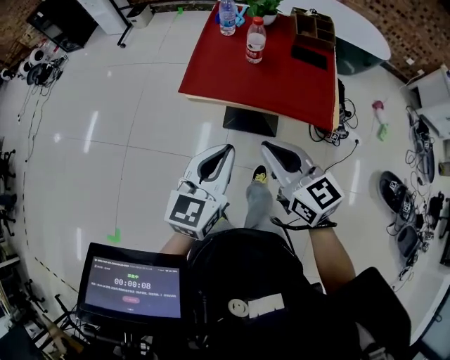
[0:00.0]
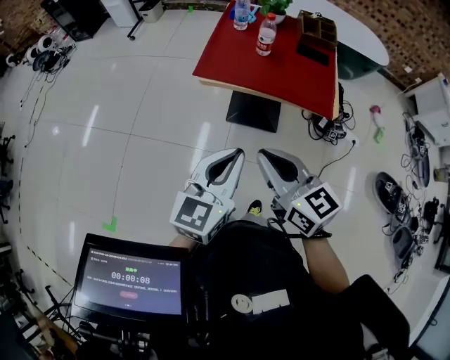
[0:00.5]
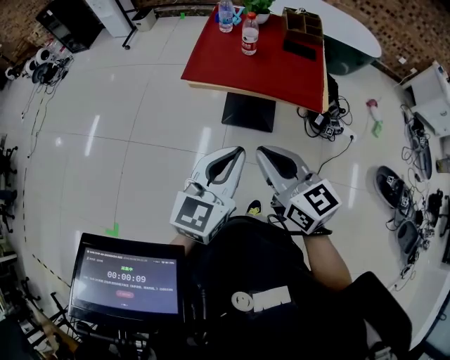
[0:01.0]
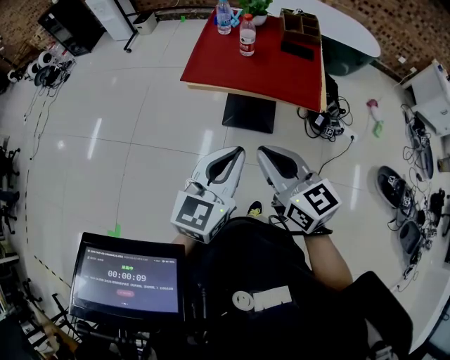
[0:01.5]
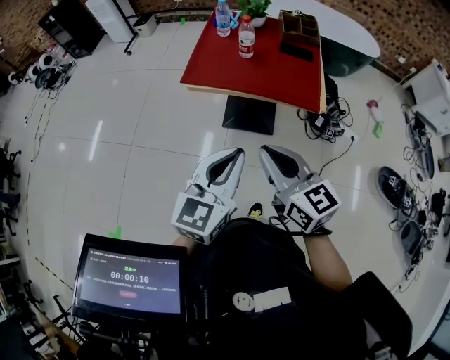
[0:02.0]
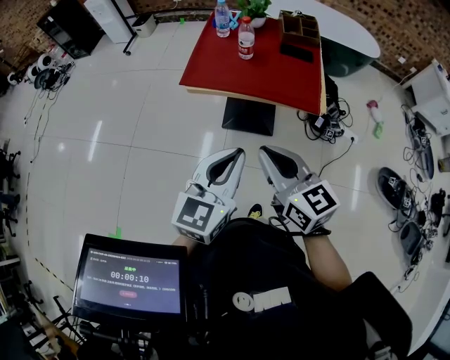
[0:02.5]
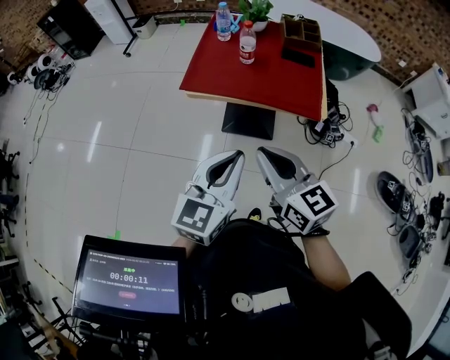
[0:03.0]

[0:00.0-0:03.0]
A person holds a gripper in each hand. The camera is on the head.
0:00.0 to 0:01.5: The right gripper travels backward by about 15 cm; the left gripper goes some 15 cm backward and upward.
0:01.5 to 0:03.0: The grippers make only small movements.

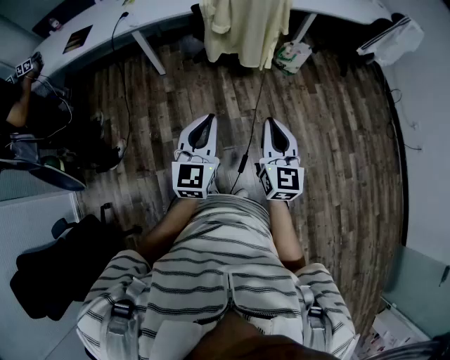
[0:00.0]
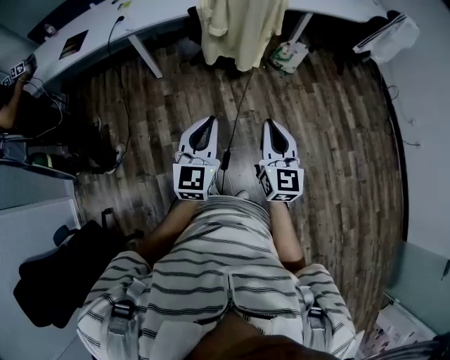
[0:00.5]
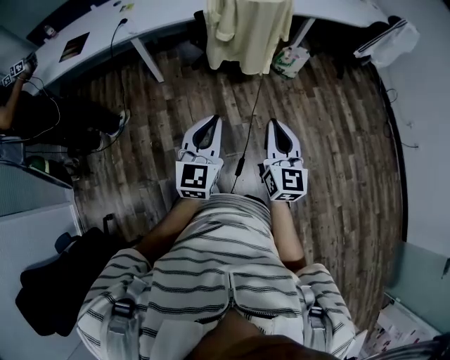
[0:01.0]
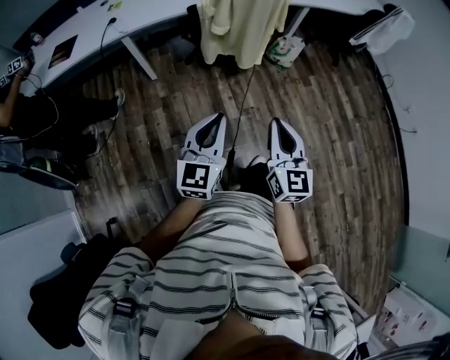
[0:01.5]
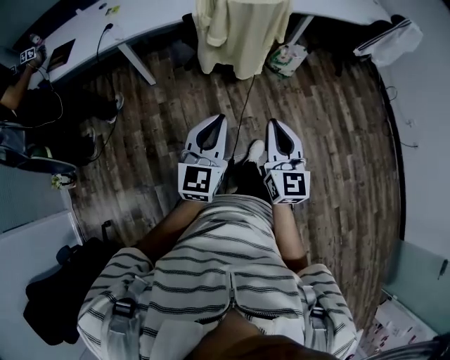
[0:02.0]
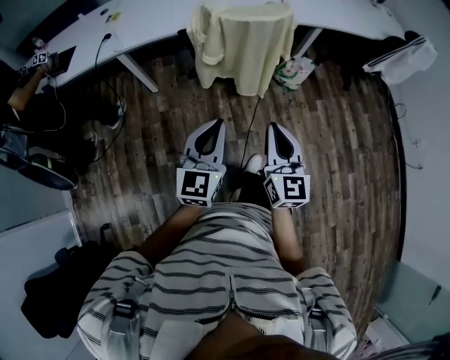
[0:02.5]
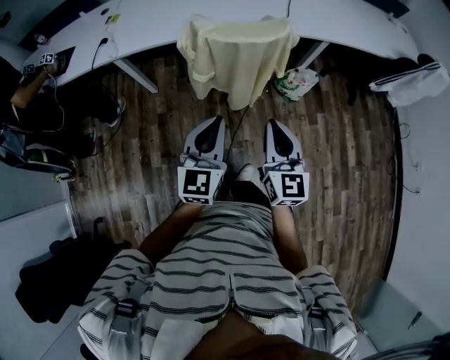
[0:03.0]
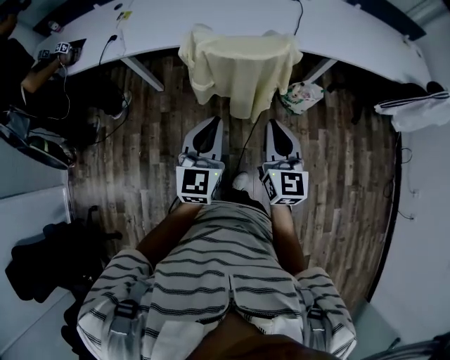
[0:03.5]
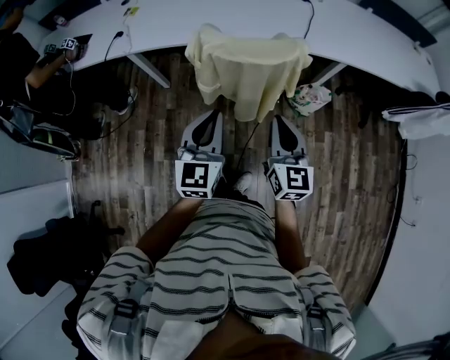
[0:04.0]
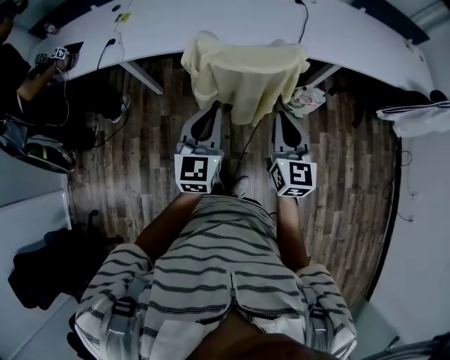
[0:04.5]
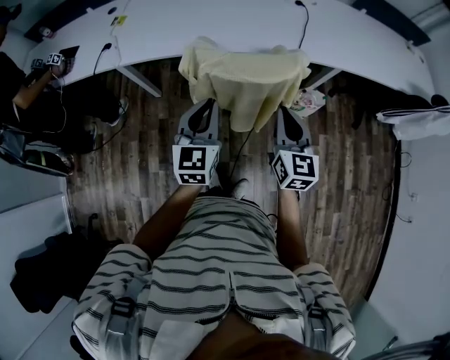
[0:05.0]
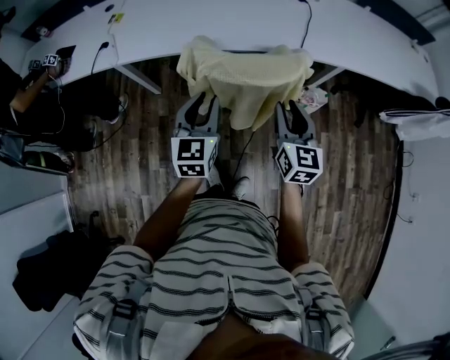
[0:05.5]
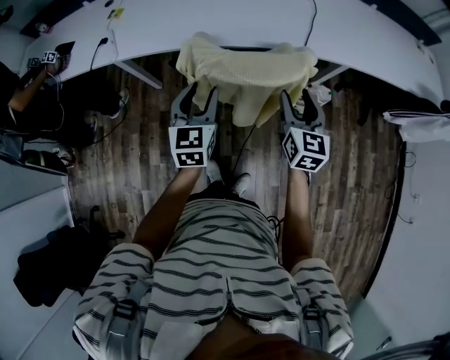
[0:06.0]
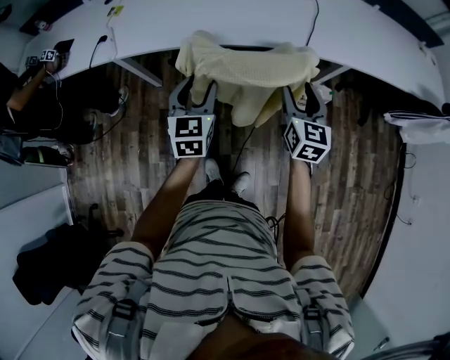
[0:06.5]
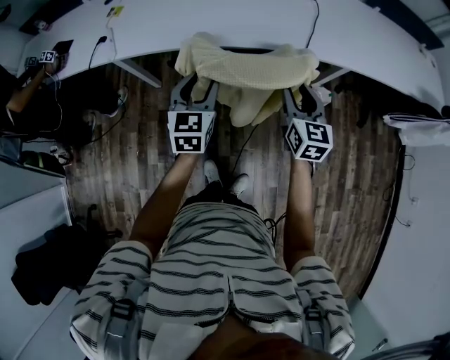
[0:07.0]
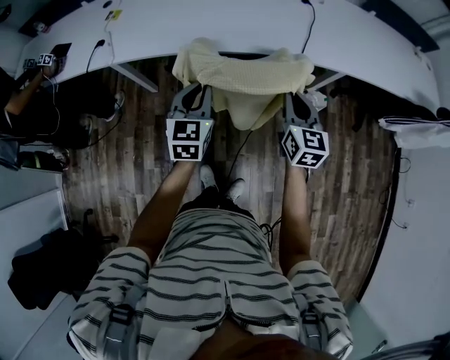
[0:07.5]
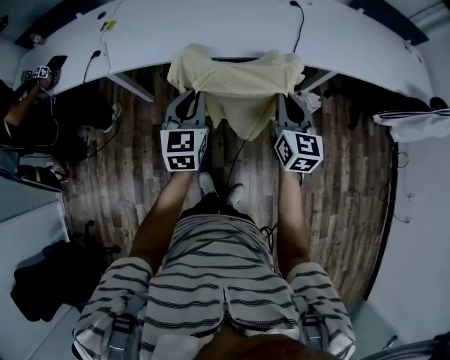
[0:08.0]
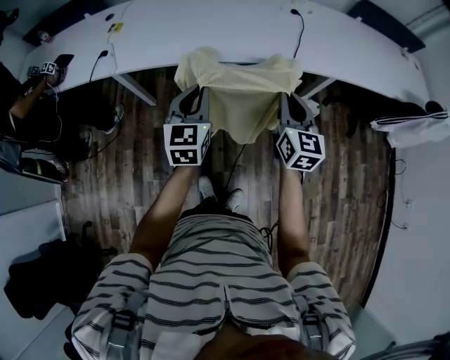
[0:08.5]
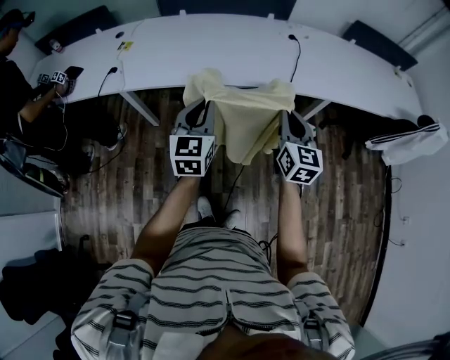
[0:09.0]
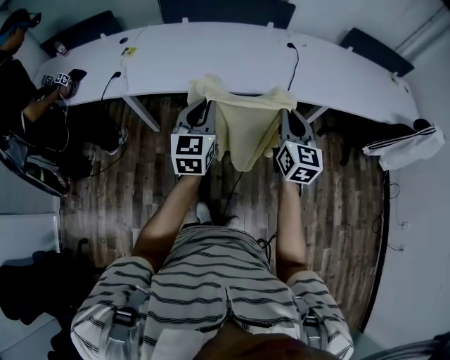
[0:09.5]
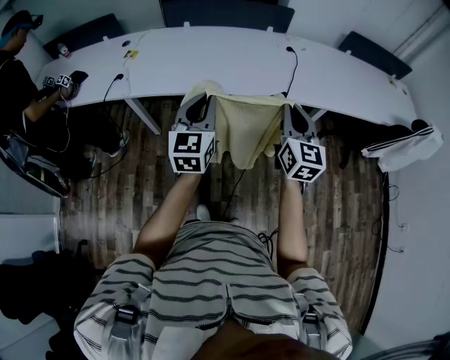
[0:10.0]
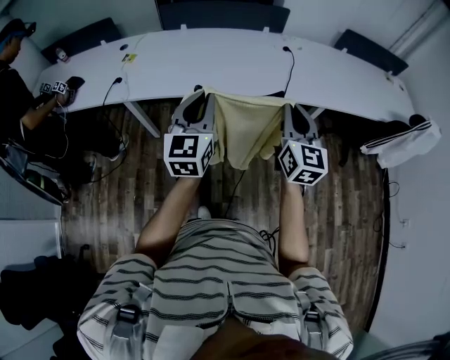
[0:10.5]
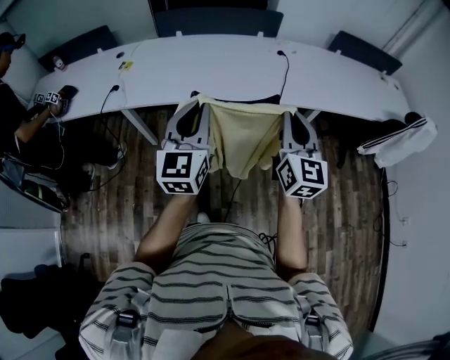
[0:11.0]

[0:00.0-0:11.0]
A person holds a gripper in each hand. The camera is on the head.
0:00.0 to 0:02.0: Both grippers move forward, roughly 10 cm.
0:02.0 to 0:03.5: Both grippers move forward and to the right, some 30 cm.
0:03.5 to 0:05.5: The two grippers go approximately 15 cm forward. The right gripper opens.
0:05.5 to 0:07.5: Both grippers move forward, about 5 cm. The left gripper opens, then closes once more, while the right gripper closes.
0:07.5 to 0:09.0: Both grippers travel together upward, approximately 10 cm.
0:09.0 to 0:11.0: The two grippers go roughly 15 cm upward and backward.

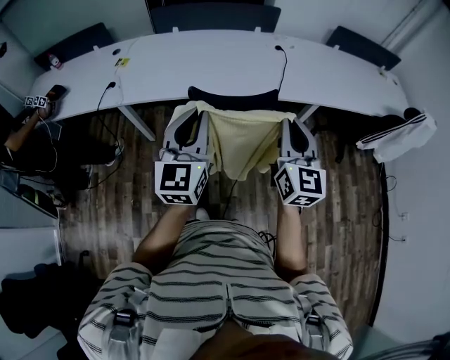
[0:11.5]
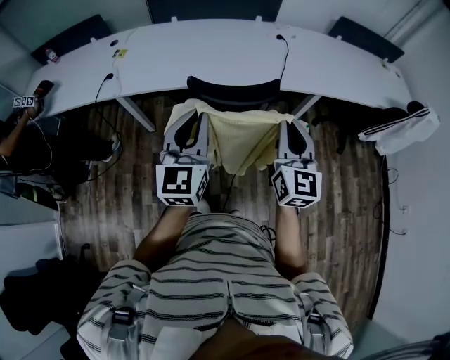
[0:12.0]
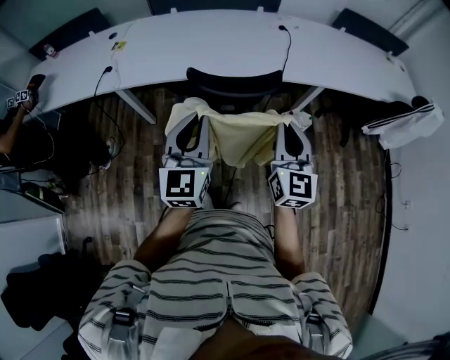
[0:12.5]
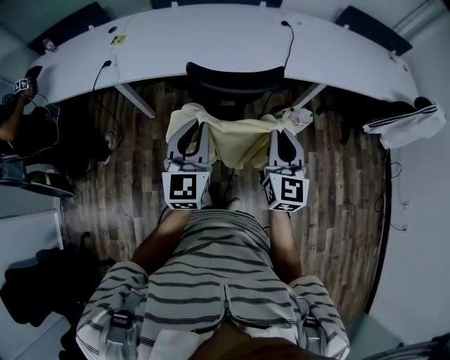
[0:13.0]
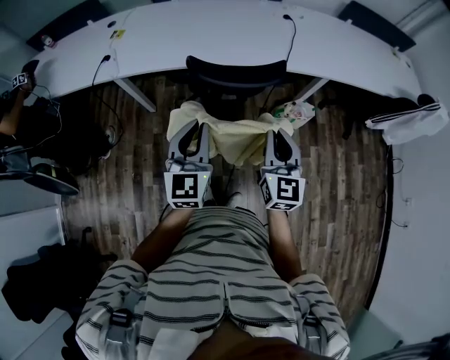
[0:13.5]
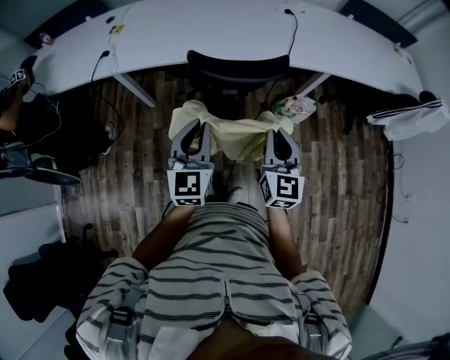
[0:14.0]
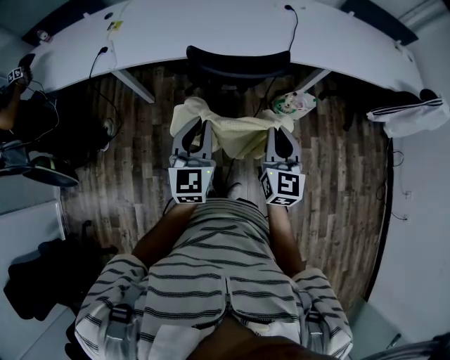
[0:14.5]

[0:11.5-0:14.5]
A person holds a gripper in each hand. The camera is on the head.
0:11.5 to 0:13.0: Both grippers move downward, about 10 cm.
0:13.0 to 0:14.5: The left gripper moves downward, approximately 5 cm; the right gripper shifts by about 5 cm.

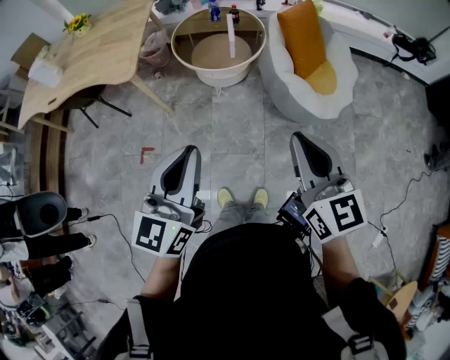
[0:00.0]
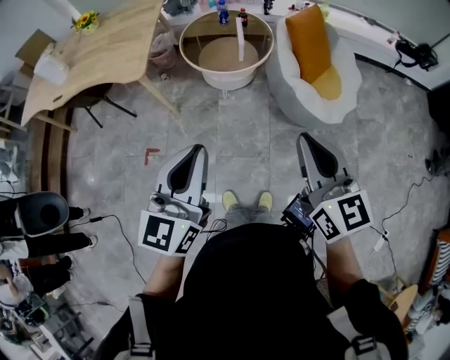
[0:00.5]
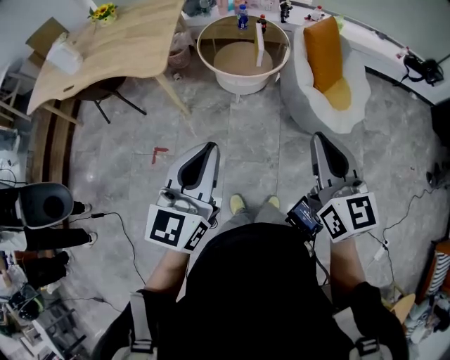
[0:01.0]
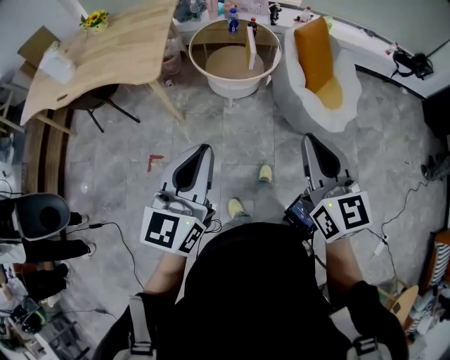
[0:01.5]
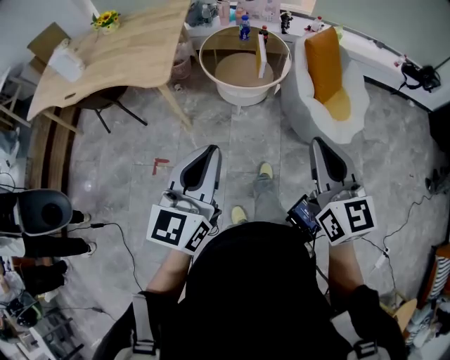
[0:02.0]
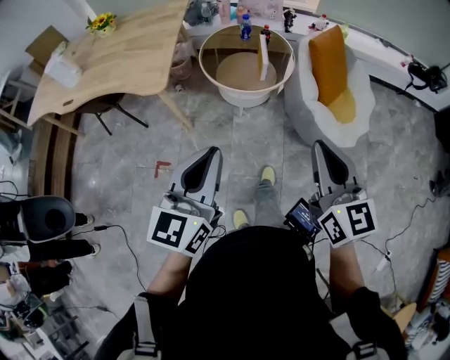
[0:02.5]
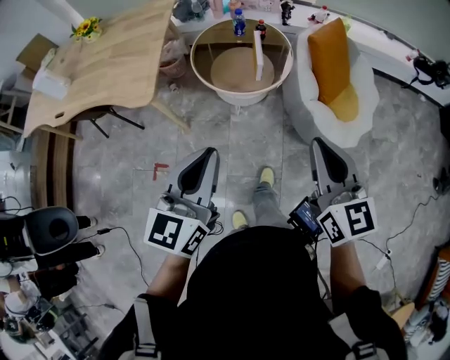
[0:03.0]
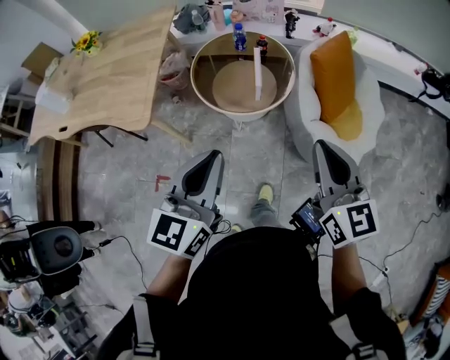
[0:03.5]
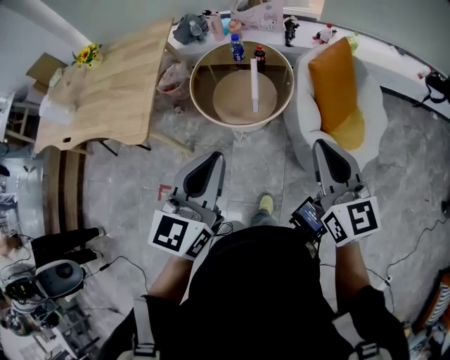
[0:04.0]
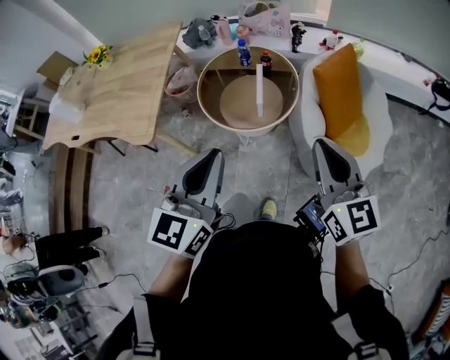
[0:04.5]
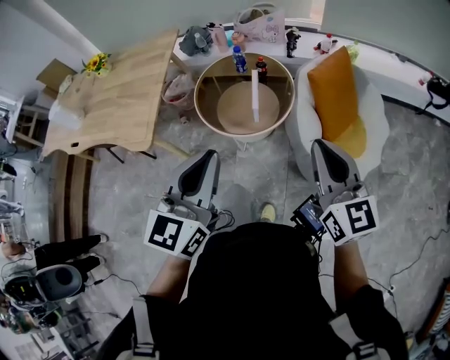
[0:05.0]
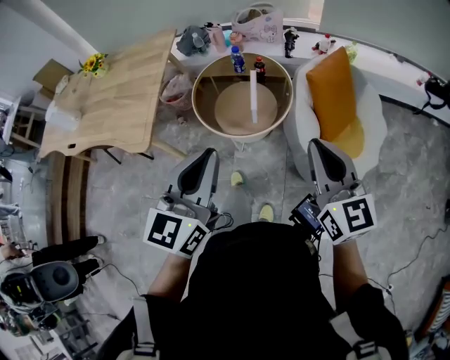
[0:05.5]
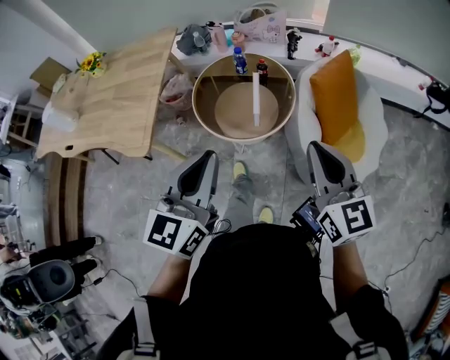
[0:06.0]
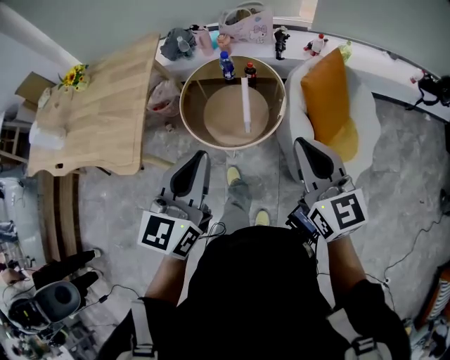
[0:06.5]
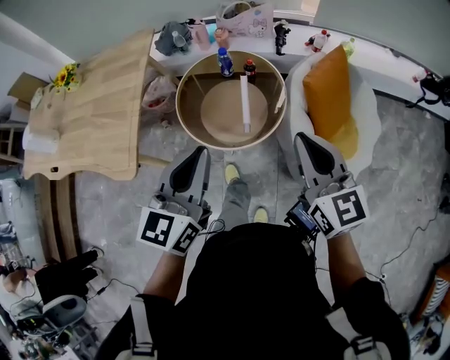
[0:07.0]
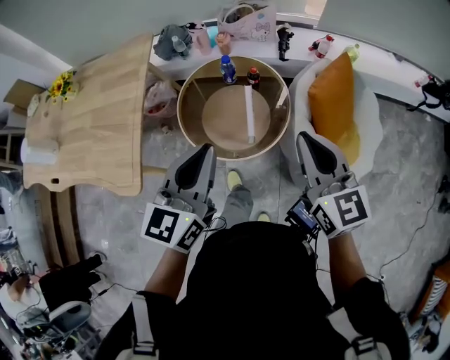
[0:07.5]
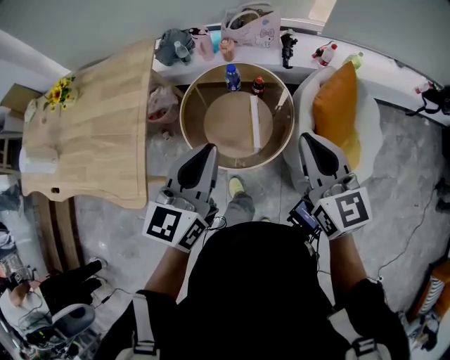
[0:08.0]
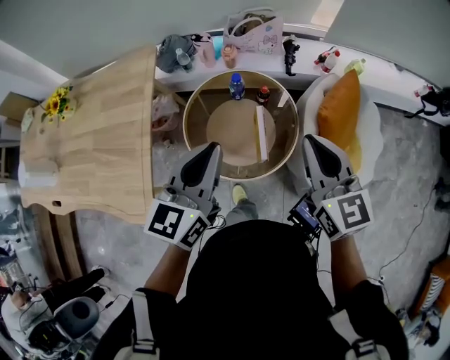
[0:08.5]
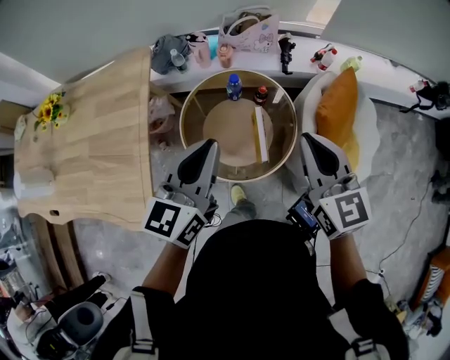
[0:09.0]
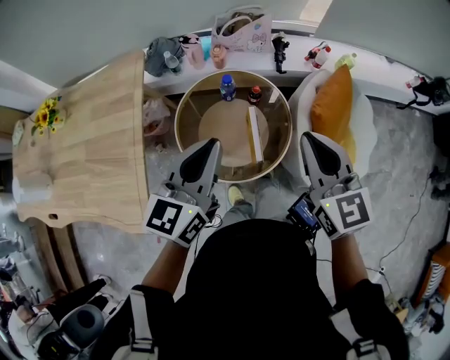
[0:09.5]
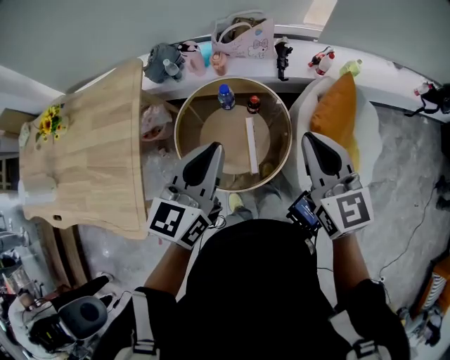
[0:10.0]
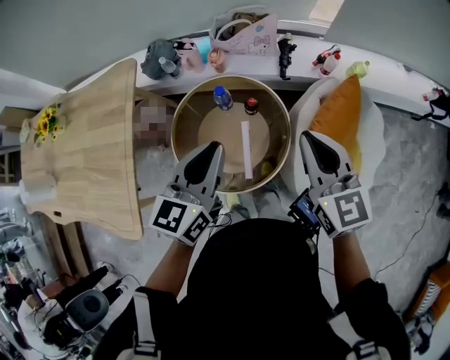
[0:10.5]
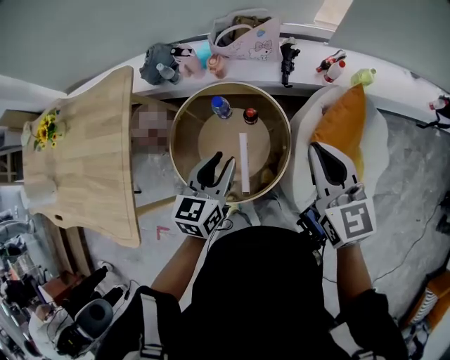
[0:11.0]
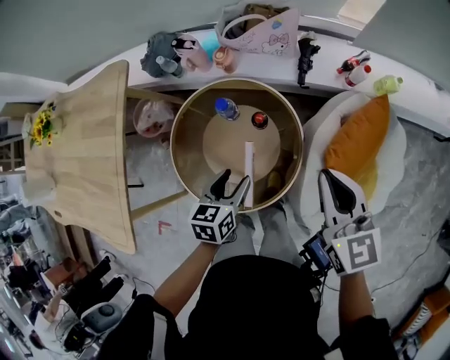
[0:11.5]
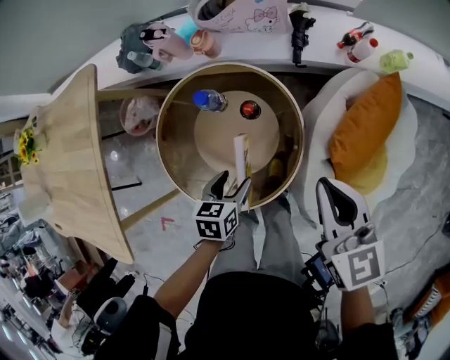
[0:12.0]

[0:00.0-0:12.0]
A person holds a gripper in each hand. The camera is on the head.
0:00.0 to 0:02.0: Both grippers move to the left, roughly 10 cm.
0:02.0 to 0:04.0: Both grippers move forward and to the right, about 30 cm.
0:04.0 to 0:06.0: The grippers make only small movements.
0:06.0 to 0:08.0: The grippers both shift forward by approximately 25 cm.
0:08.0 to 0:10.0: Both grippers travel together forward, roughly 10 cm.
0:10.0 to 0:12.0: The right gripper shifts about 25 cm downward, forward and to the right, and changes its angle by approximately 20 degrees, while the left gripper shifts roughly 40 cm downward, tilts its fingers approximately 50 degrees downward, and opens its fingers.
